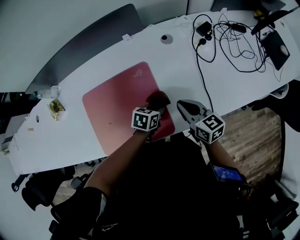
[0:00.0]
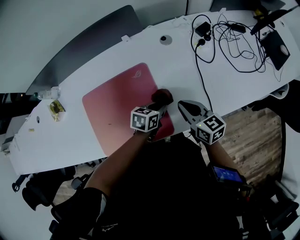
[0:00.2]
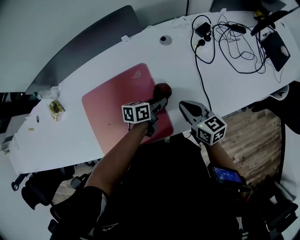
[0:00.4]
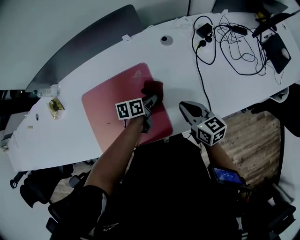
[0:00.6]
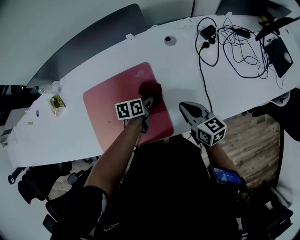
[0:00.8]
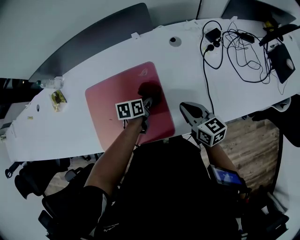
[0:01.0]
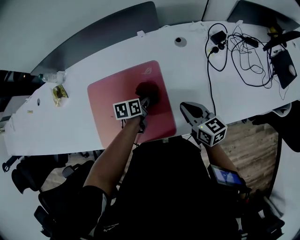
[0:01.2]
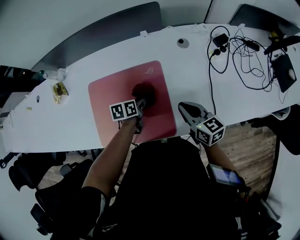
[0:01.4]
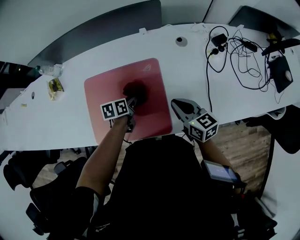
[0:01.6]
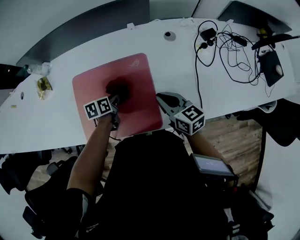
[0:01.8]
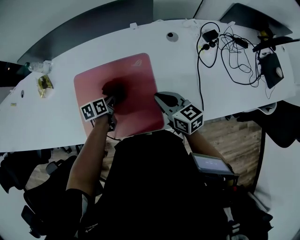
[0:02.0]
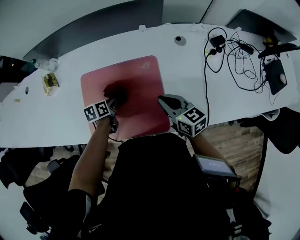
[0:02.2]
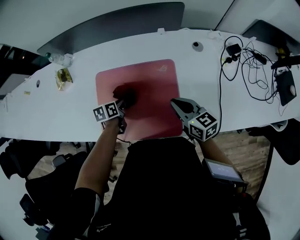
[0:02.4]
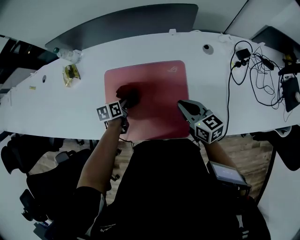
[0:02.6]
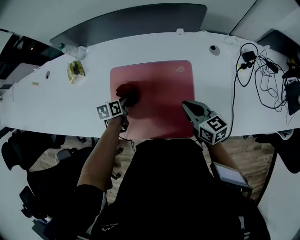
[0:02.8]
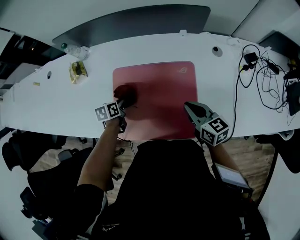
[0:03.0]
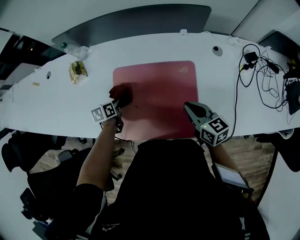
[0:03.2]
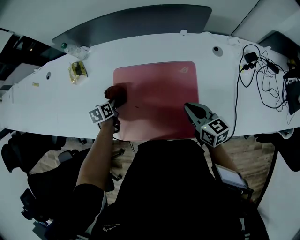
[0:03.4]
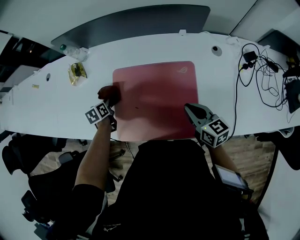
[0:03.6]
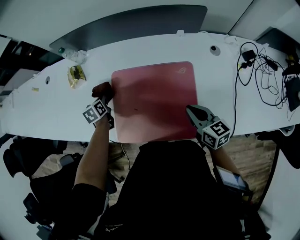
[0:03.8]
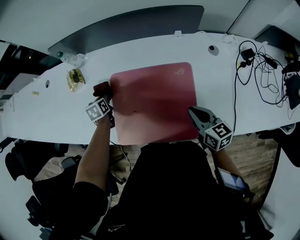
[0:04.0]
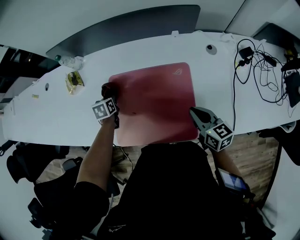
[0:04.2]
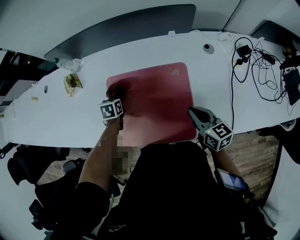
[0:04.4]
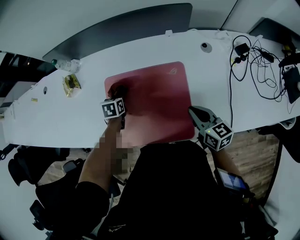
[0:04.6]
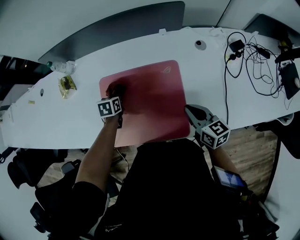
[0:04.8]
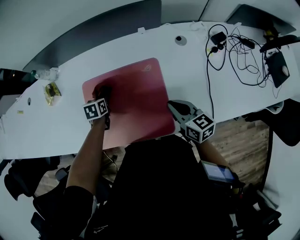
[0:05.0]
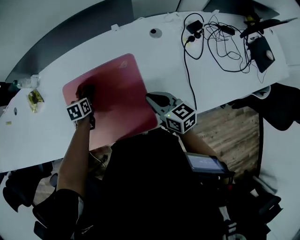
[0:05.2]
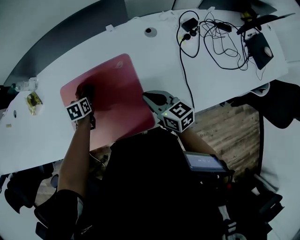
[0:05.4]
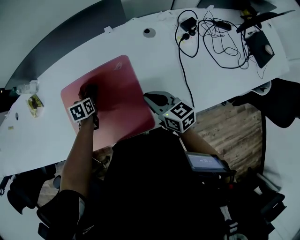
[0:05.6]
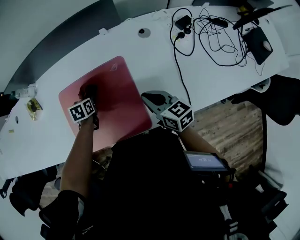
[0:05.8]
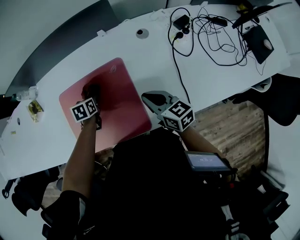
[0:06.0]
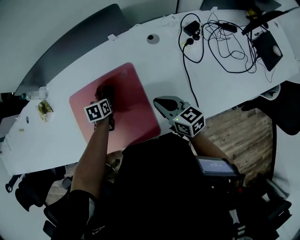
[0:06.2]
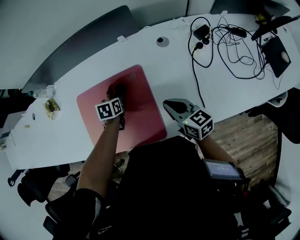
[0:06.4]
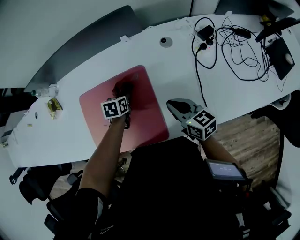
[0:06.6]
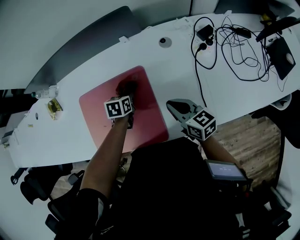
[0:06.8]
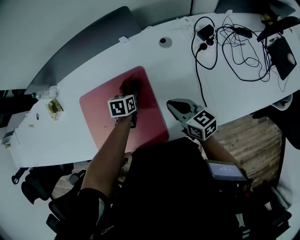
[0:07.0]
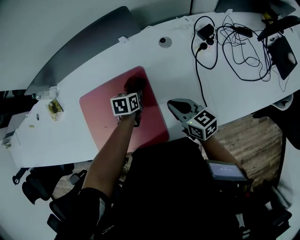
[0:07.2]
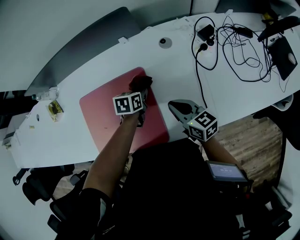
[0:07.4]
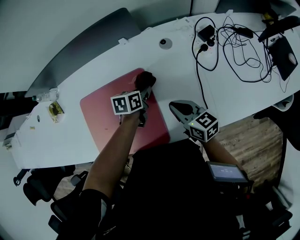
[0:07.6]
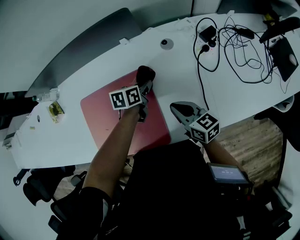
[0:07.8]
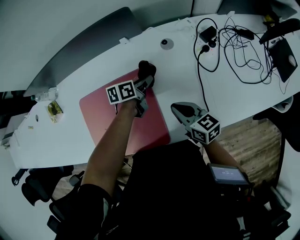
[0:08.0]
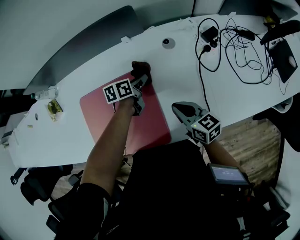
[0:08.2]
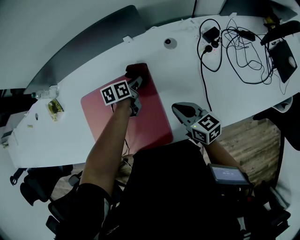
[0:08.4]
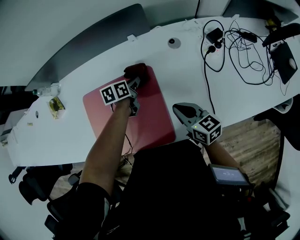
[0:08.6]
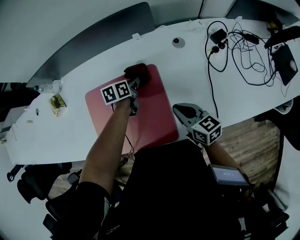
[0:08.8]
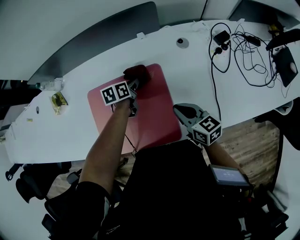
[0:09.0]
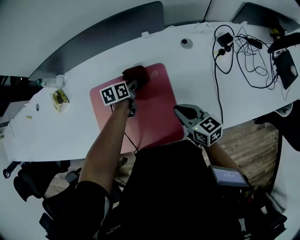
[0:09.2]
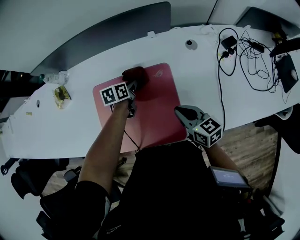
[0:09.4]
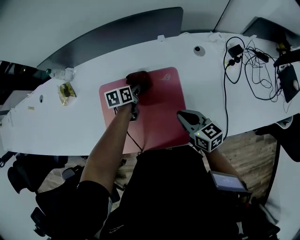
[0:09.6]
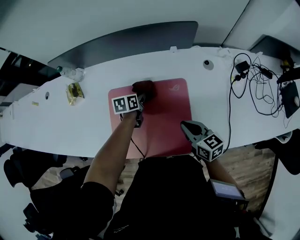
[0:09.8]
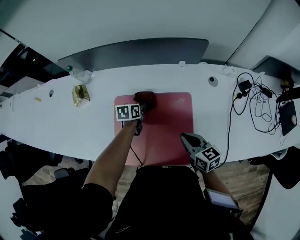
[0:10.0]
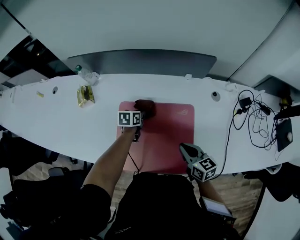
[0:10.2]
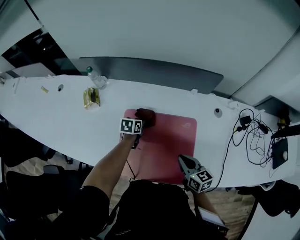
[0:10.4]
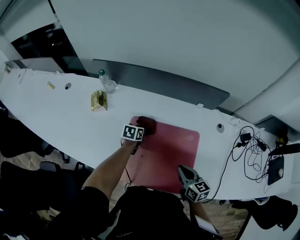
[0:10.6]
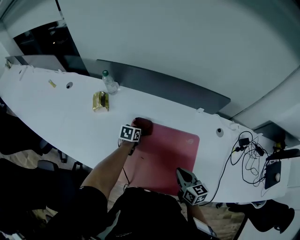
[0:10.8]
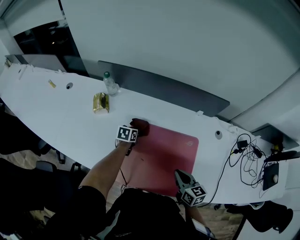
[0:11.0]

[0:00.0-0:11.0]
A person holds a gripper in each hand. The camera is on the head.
0:00.0 to 0:01.6: The left gripper goes about 15 cm to the left, and rotates roughly 40 degrees.
0:01.6 to 0:03.2: The right gripper is displaced to the left by about 10 cm, while the left gripper goes roughly 25 cm to the left.
0:03.2 to 0:04.8: The right gripper is displaced to the right by approximately 5 cm; the left gripper goes approximately 10 cm to the right, and swivels some 20 degrees.
0:04.8 to 0:06.2: The right gripper is displaced to the right by about 5 cm, while the left gripper travels to the right by about 15 cm.
0:06.2 to 0:07.8: The left gripper shifts approximately 20 cm to the right, and changes its angle by approximately 30 degrees.
0:07.8 to 0:09.4: The right gripper travels to the left by approximately 10 cm. The left gripper heads to the left, covering about 20 cm.
0:09.4 to 0:11.0: The left gripper is displaced to the left by about 20 cm; the right gripper heads to the left, covering about 10 cm.

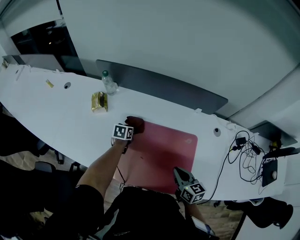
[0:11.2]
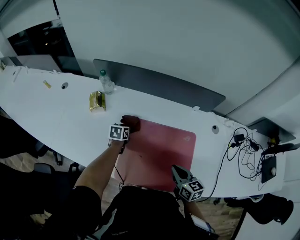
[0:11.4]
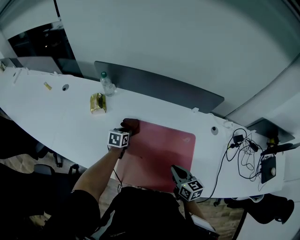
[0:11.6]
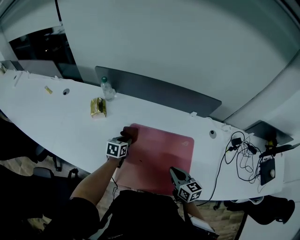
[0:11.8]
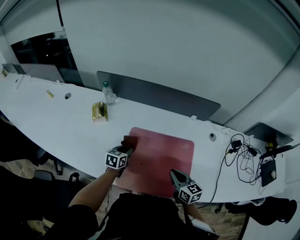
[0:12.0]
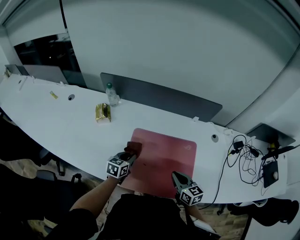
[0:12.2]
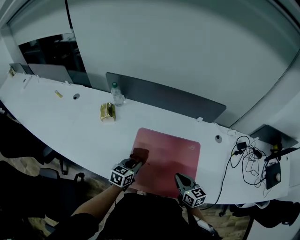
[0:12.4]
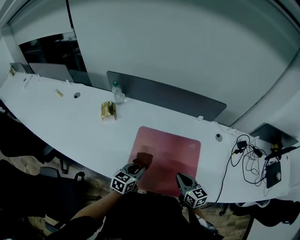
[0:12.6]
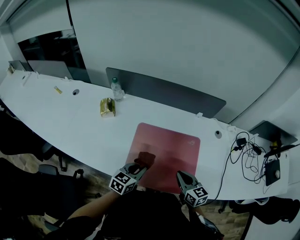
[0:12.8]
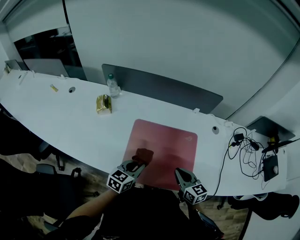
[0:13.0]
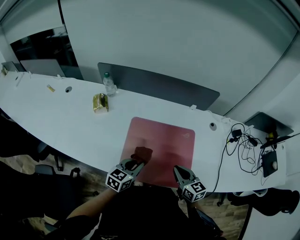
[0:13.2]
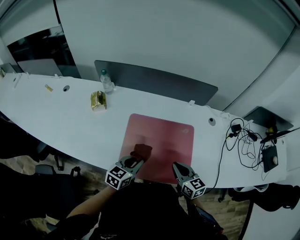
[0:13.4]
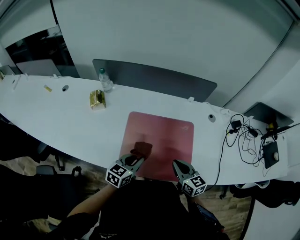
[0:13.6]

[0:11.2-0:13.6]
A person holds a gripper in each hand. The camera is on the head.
0:11.2 to 0:12.4: The left gripper travels backward and upward by some 20 cm, and swivels roughly 20 degrees.
0:12.4 to 0:13.6: The left gripper heads backward and to the right, covering roughly 10 cm.

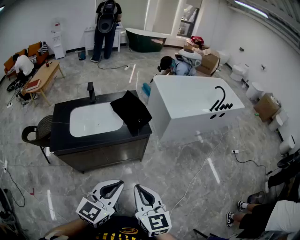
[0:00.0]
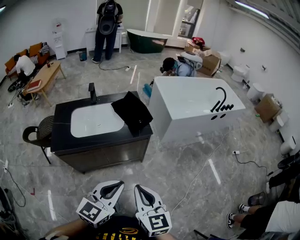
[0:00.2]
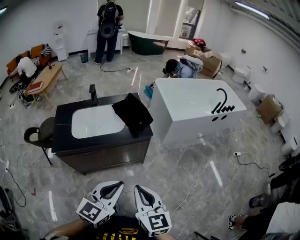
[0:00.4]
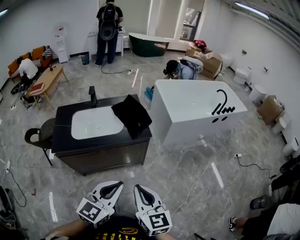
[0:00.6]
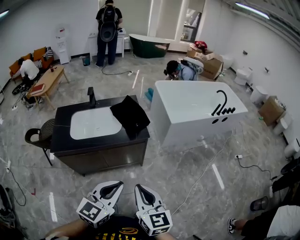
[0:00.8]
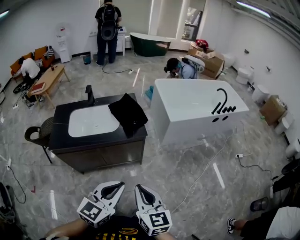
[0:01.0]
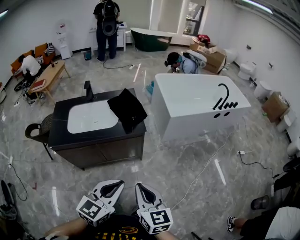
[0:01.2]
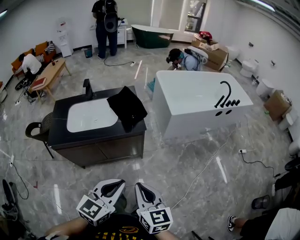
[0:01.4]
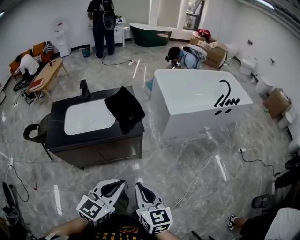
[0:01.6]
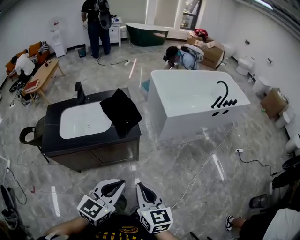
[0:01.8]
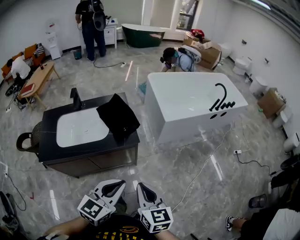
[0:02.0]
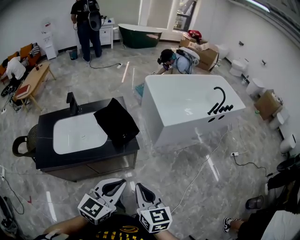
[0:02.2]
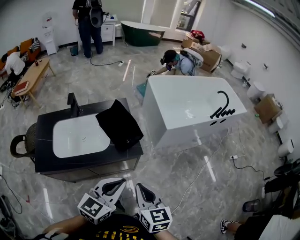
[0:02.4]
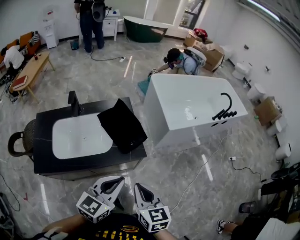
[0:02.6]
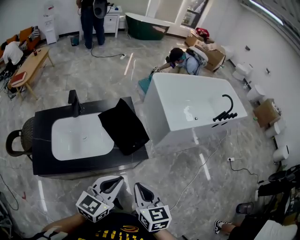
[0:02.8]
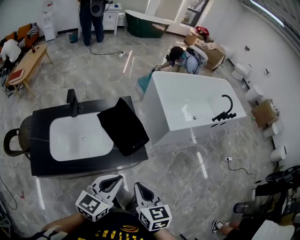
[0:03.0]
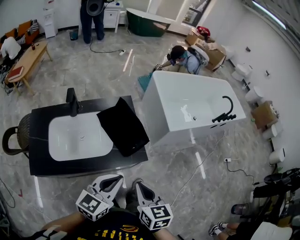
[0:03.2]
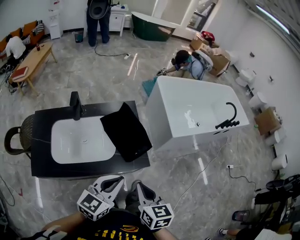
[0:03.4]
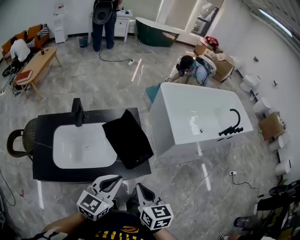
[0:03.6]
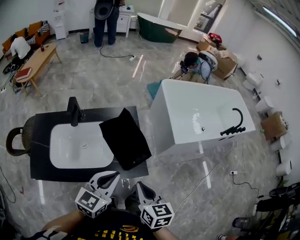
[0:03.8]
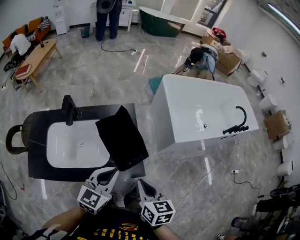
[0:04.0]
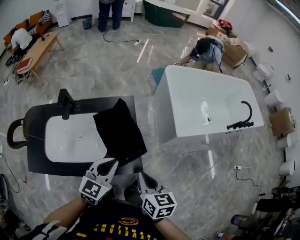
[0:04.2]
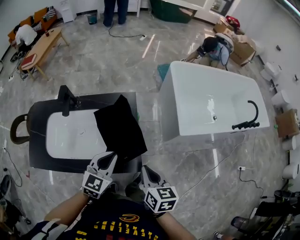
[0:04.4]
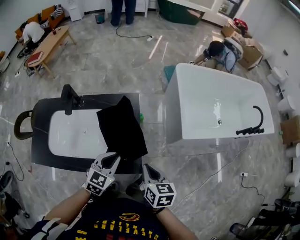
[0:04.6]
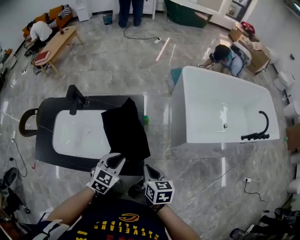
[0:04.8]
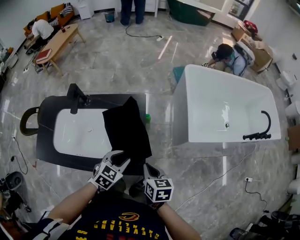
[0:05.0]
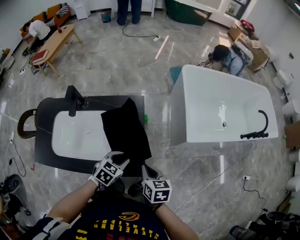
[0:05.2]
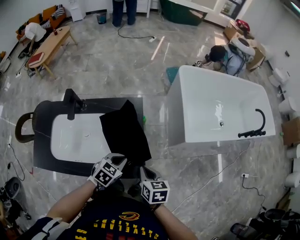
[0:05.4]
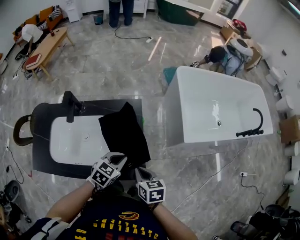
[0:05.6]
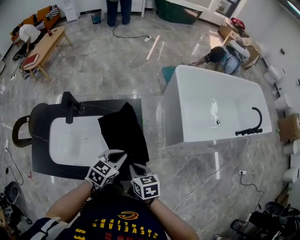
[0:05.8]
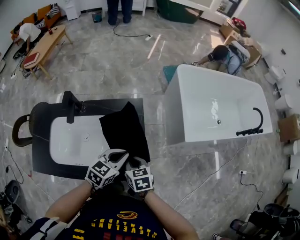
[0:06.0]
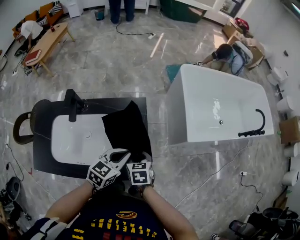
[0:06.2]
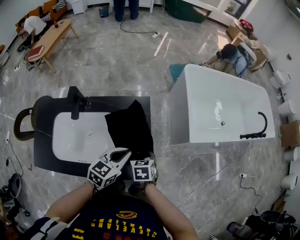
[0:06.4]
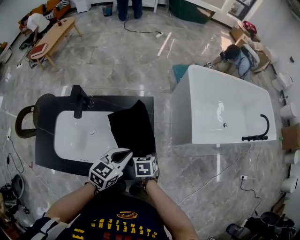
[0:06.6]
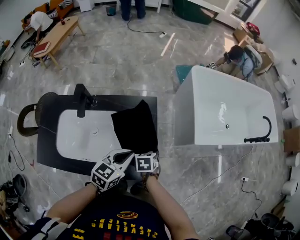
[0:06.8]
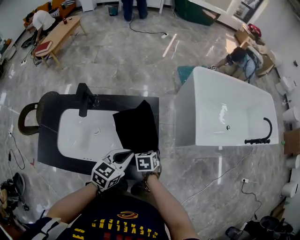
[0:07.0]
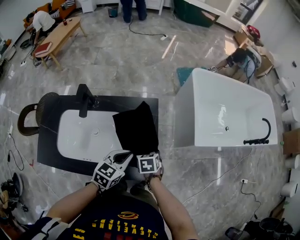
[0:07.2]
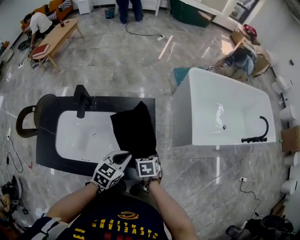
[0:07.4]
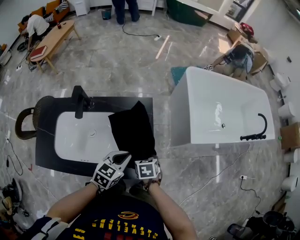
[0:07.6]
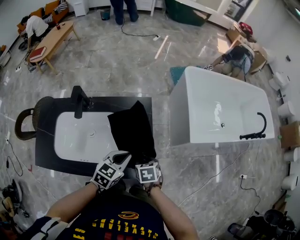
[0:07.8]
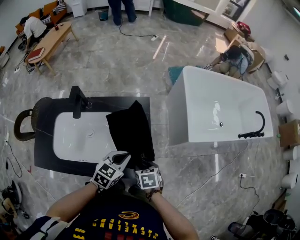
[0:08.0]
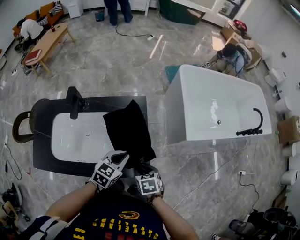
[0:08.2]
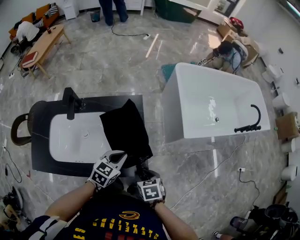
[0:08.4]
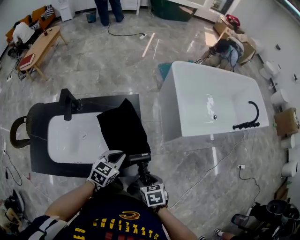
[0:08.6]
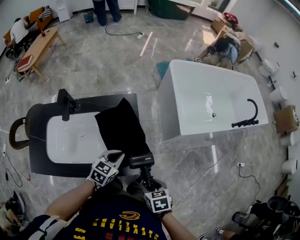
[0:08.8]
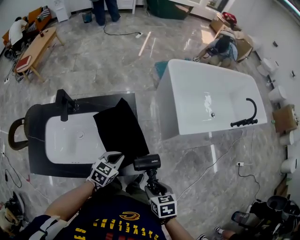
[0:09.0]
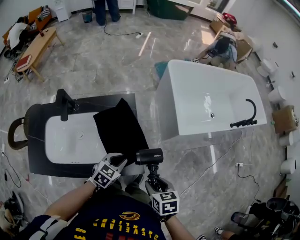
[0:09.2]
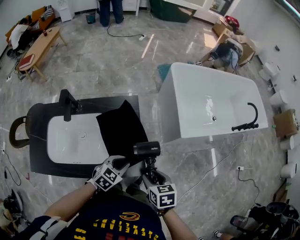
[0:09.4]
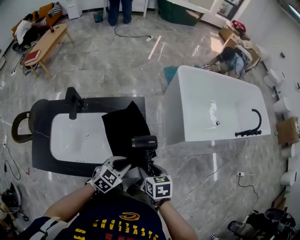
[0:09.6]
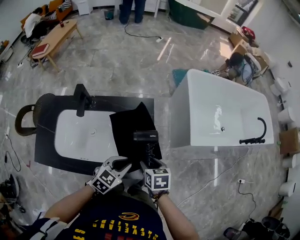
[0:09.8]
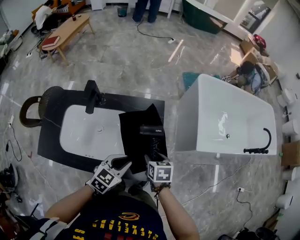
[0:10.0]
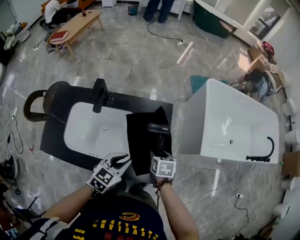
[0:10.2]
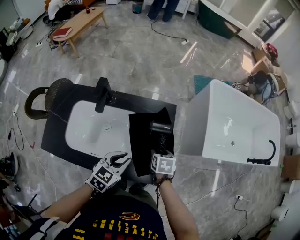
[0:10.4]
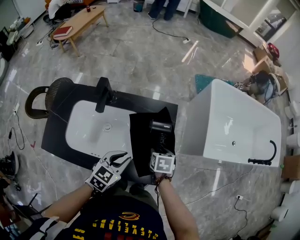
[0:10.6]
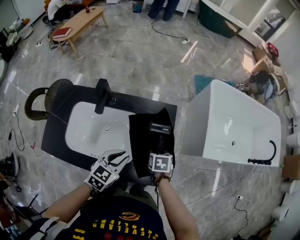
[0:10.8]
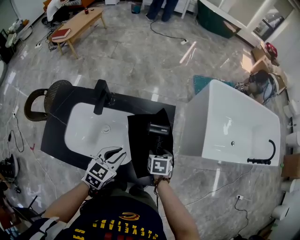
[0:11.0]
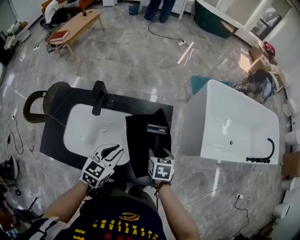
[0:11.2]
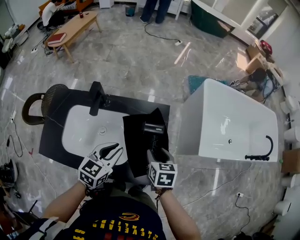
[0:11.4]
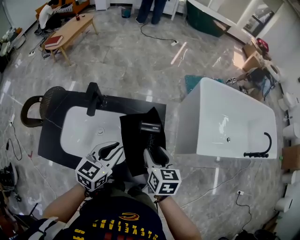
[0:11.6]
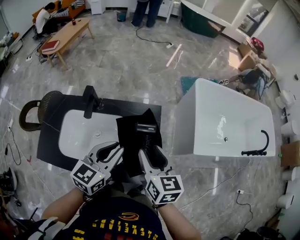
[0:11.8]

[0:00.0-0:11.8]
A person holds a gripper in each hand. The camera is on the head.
0:00.0 to 0:01.4: Both grippers move to the right, some 10 cm.
0:01.4 to 0:03.0: Both grippers move forward and to the left, about 30 cm.
0:03.0 to 0:04.4: The left gripper heads forward and downward, covering approximately 20 cm, and swivels roughly 20 degrees. Meanwhile the right gripper shifts approximately 20 cm forward and to the right.
0:04.4 to 0:06.0: The left gripper shifts some 5 cm forward, travels downward and back again, approximately 10 cm each way, and opens, then closes once more. The right gripper shifts approximately 15 cm to the left, downward and forward, and changes its angle by some 20 degrees.
0:06.0 to 0:07.4: The right gripper heads downward, covering approximately 5 cm, and opens its fingers.
0:07.4 to 0:08.8: The right gripper goes about 20 cm backward and to the right.
0:08.8 to 0:10.4: The left gripper moves to the left, roughly 10 cm; the right gripper travels forward and to the left by approximately 25 cm.
0:10.4 to 0:11.8: The left gripper is displaced upward by some 15 cm; the right gripper heads upward, covering some 25 cm, and tips its fingers upward by roughly 40 degrees.
